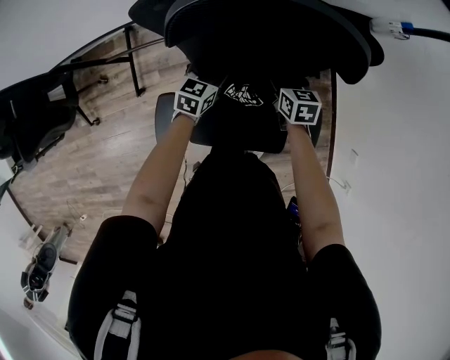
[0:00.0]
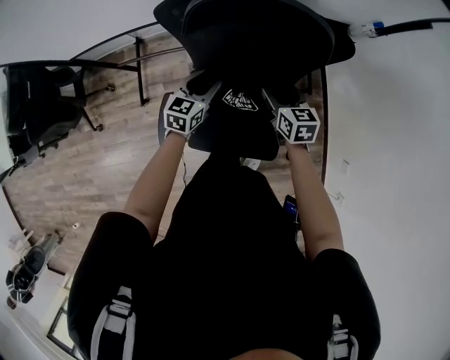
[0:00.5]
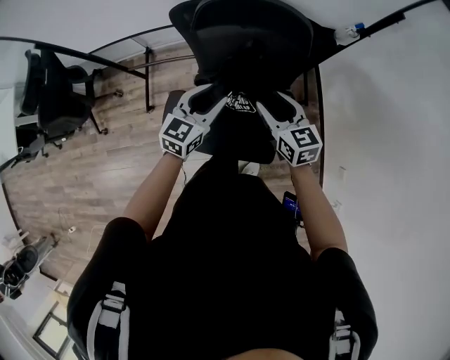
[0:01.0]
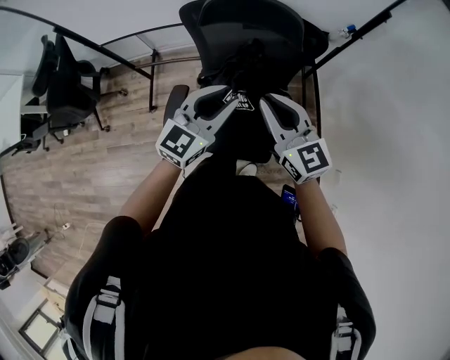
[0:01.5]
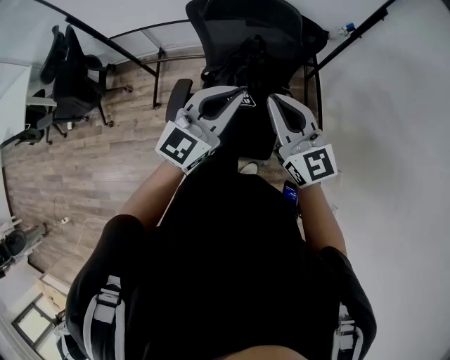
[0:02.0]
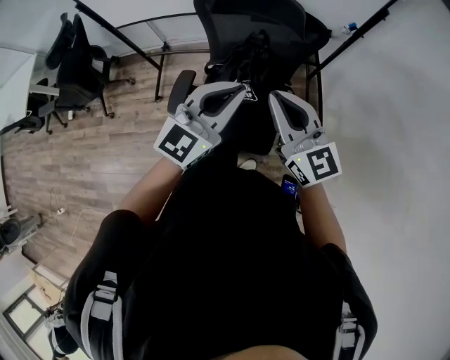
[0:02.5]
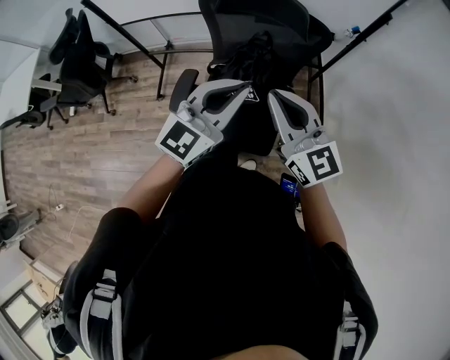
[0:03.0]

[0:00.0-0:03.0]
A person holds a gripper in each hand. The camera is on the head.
0:00.0 to 0:01.5: Both grippers travel together upward and backward, some 50 cm. The left gripper rotates about 30 degrees. Meanwhile the right gripper points its fingers roughly 40 degrees further upward, and closes its fingers.
0:01.5 to 0:03.0: Both grippers travel together backward and upward, about 10 cm. The left gripper closes.

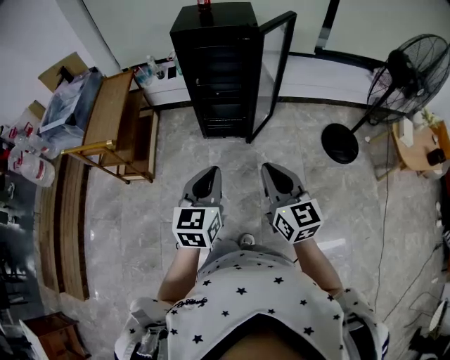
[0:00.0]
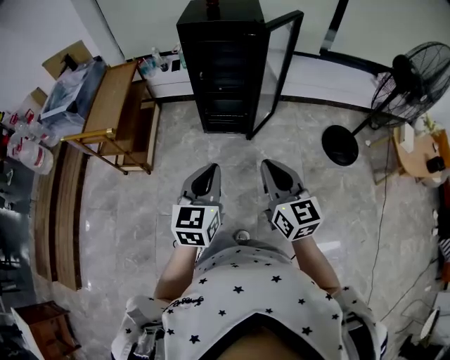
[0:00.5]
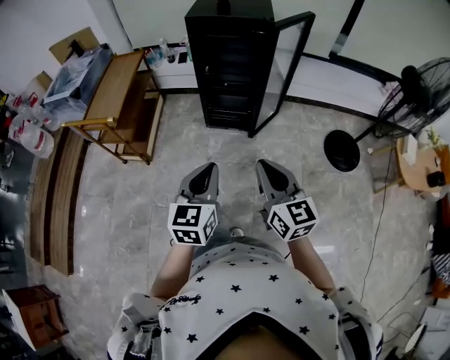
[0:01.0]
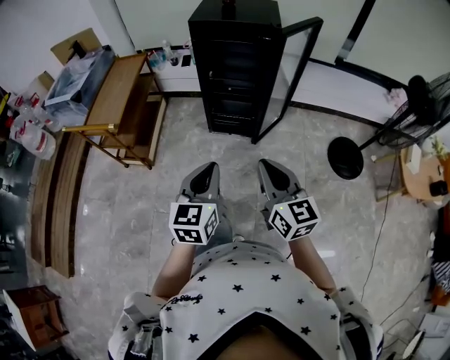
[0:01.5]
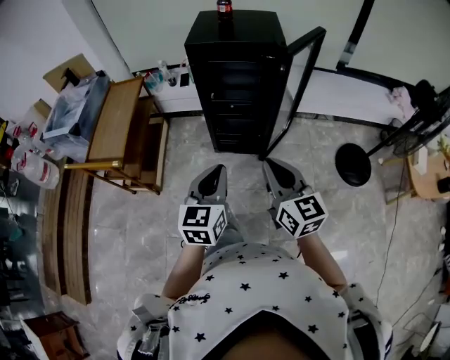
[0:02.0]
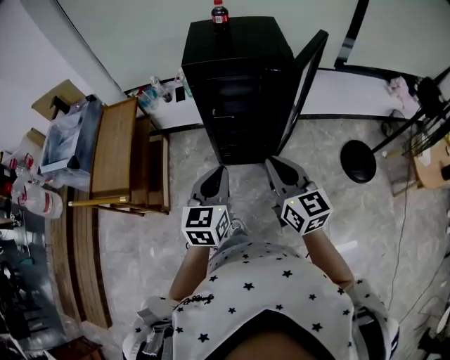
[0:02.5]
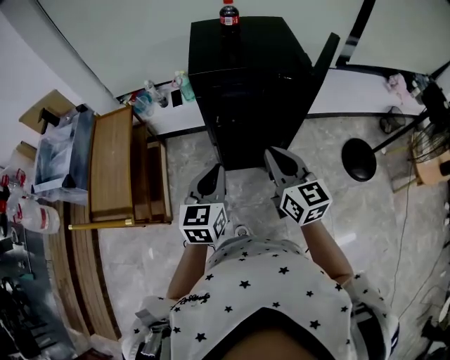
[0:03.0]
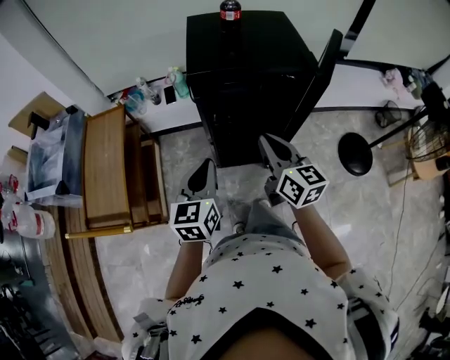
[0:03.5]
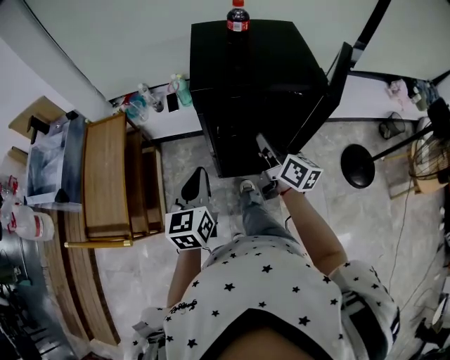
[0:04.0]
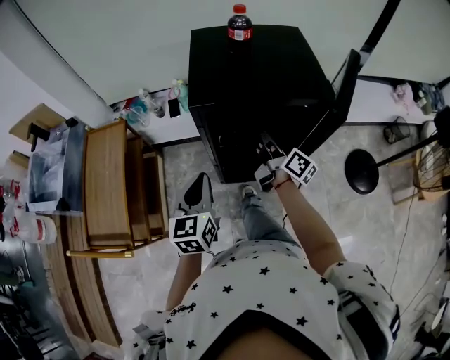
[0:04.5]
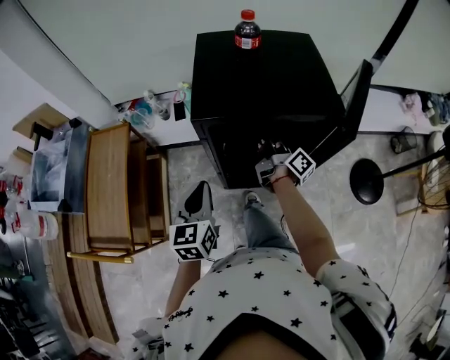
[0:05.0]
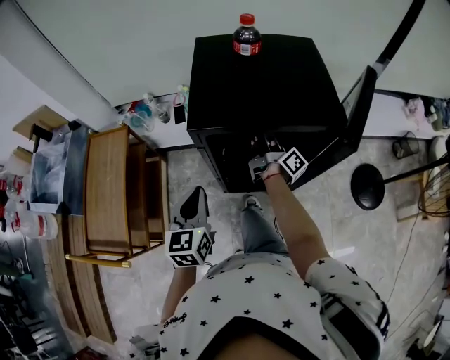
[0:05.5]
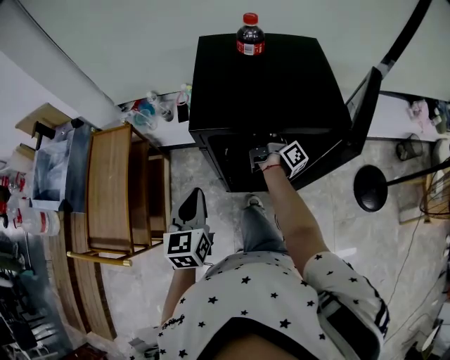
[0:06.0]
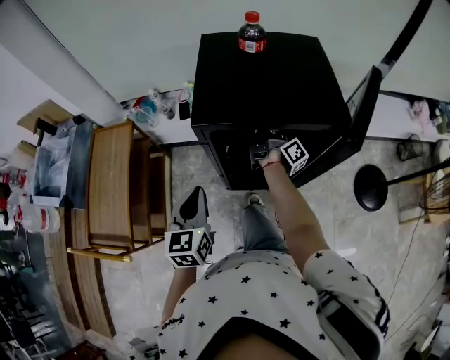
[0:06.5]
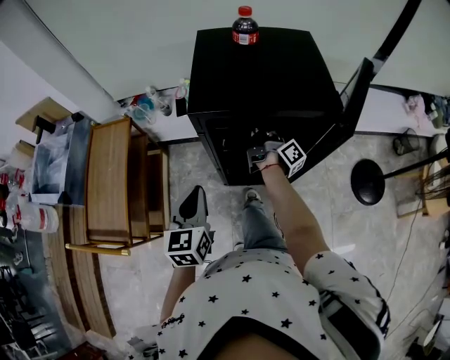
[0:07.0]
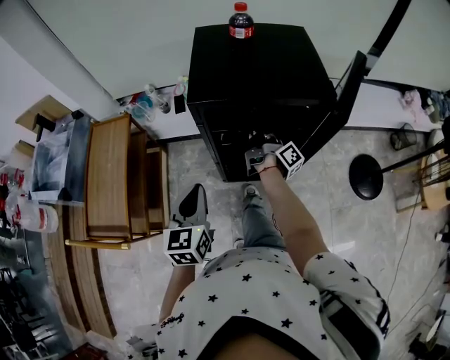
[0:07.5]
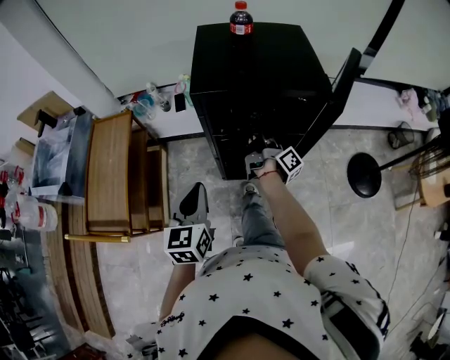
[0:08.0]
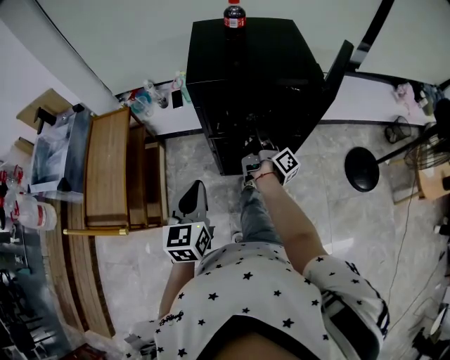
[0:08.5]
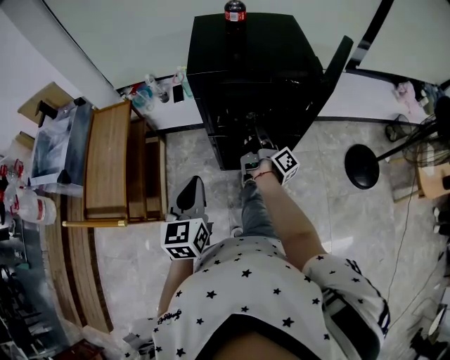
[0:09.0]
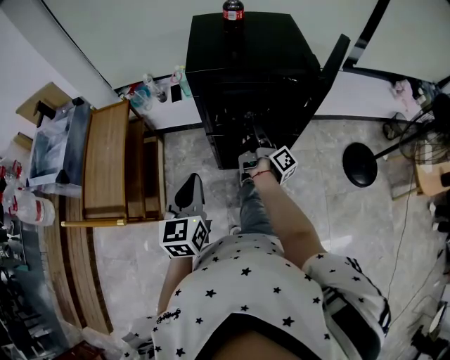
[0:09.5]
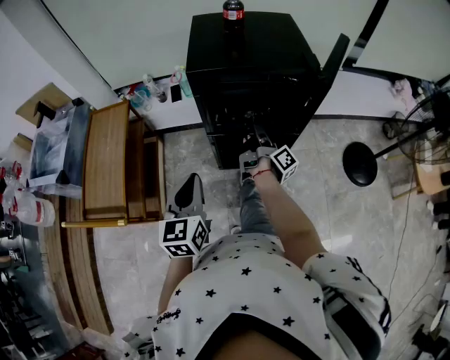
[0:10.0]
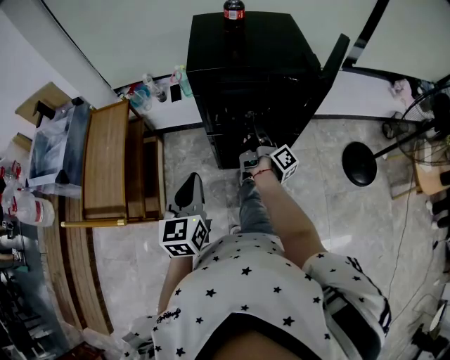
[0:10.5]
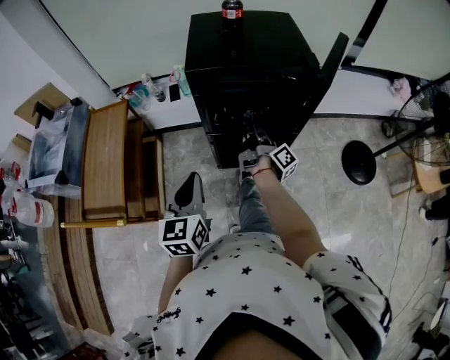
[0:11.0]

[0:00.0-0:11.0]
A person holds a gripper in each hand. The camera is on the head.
0:00.0 to 0:02.0: The two grippers go some 15 cm forward.
0:02.0 to 0:03.5: The right gripper shifts approximately 30 cm forward; the left gripper heads forward and to the left, covering approximately 30 cm.
0:03.5 to 0:05.5: The right gripper shifts approximately 30 cm forward and downward, rotates around the line of its fingers by roughly 60 degrees, clockwise from behind, and opens up, while the left gripper heads forward, covering approximately 10 cm.
0:05.5 to 0:07.5: The two grippers go roughly 5 cm backward. The right gripper closes its fingers.
0:07.5 to 0:09.0: The grippers both shift backward by about 10 cm.
0:09.0 to 0:11.0: Neither gripper changes place.

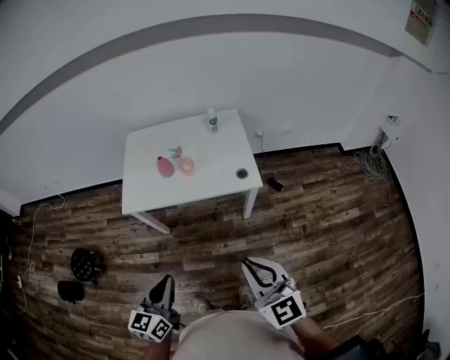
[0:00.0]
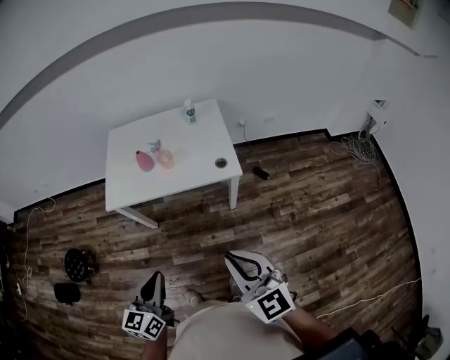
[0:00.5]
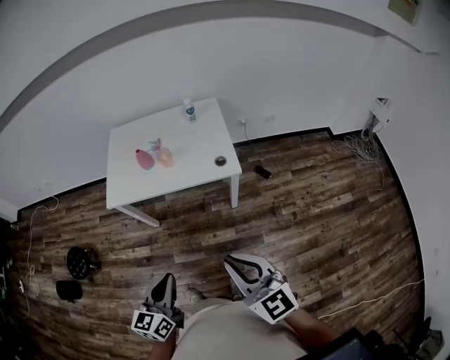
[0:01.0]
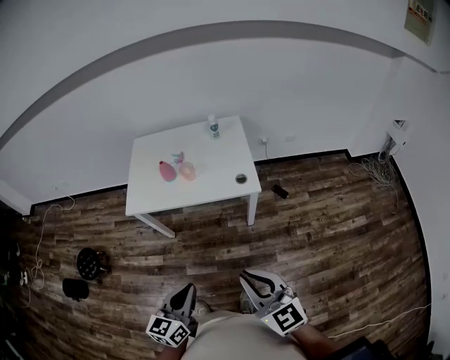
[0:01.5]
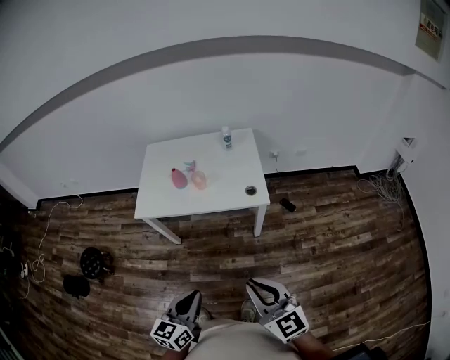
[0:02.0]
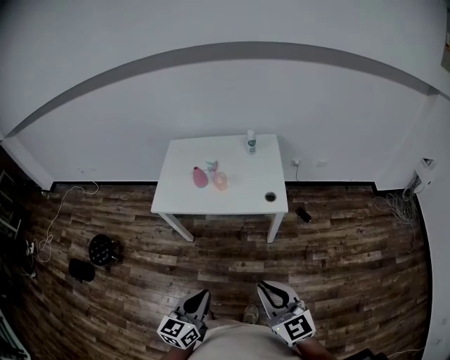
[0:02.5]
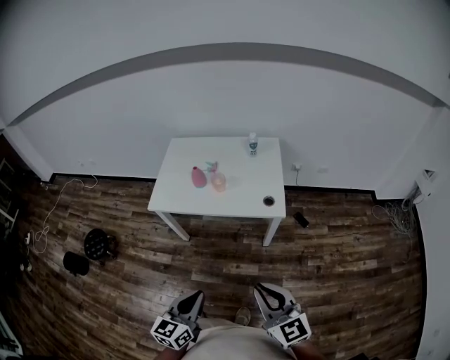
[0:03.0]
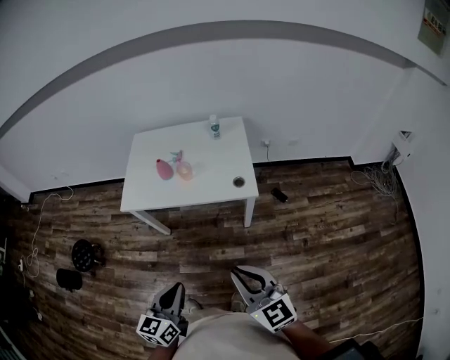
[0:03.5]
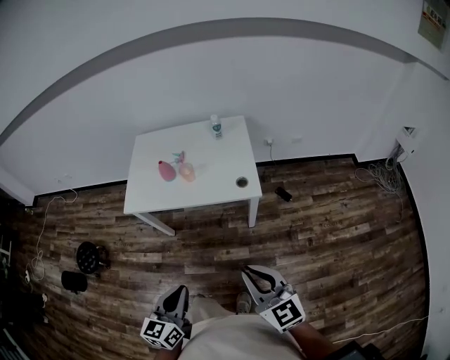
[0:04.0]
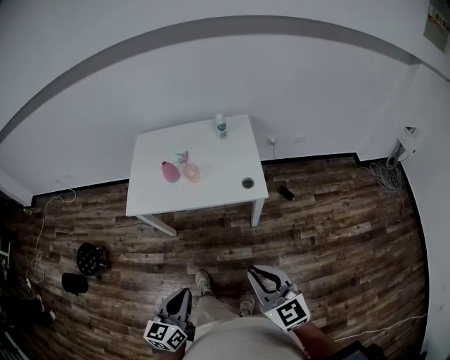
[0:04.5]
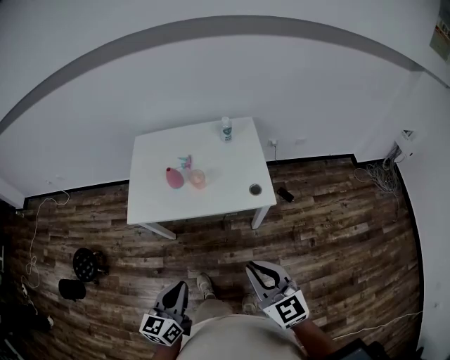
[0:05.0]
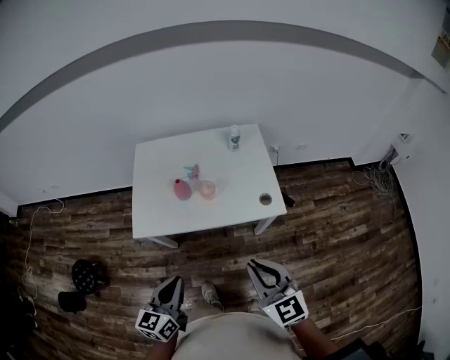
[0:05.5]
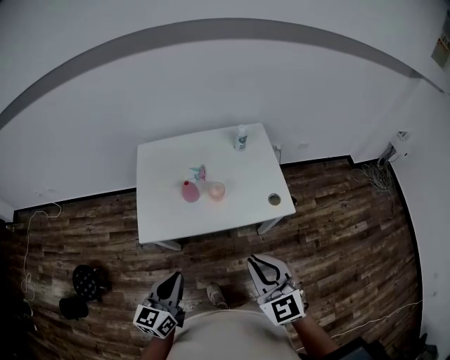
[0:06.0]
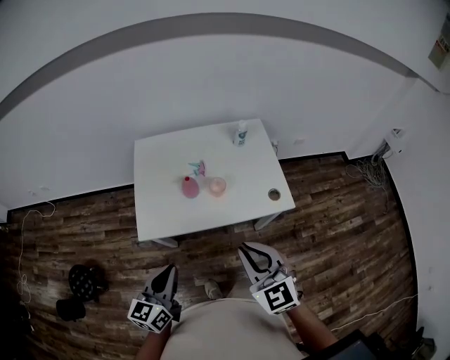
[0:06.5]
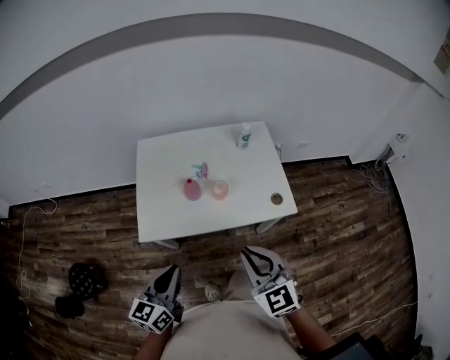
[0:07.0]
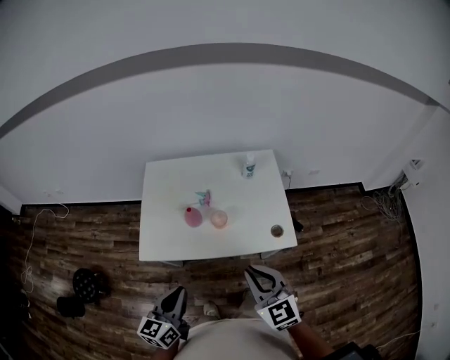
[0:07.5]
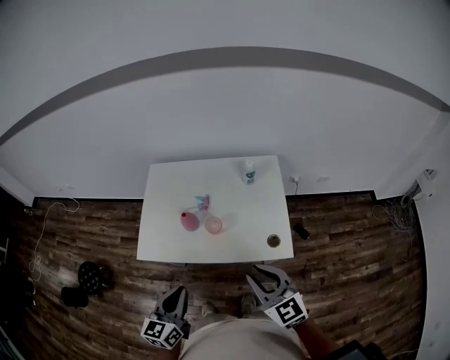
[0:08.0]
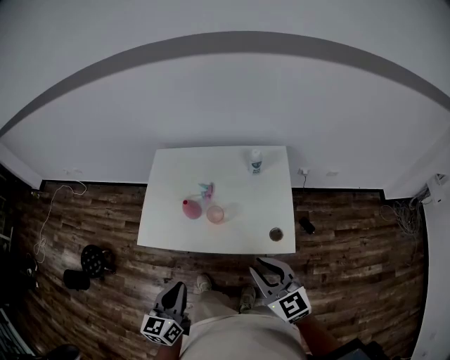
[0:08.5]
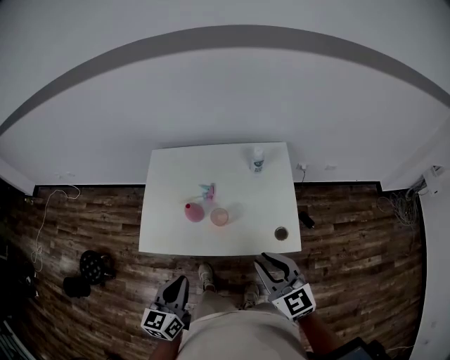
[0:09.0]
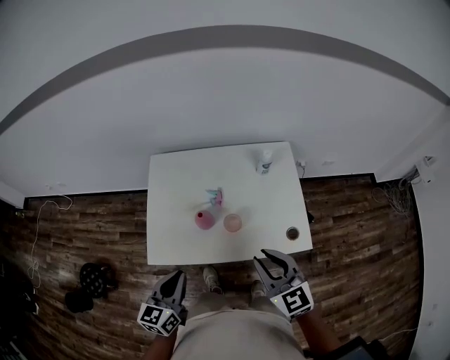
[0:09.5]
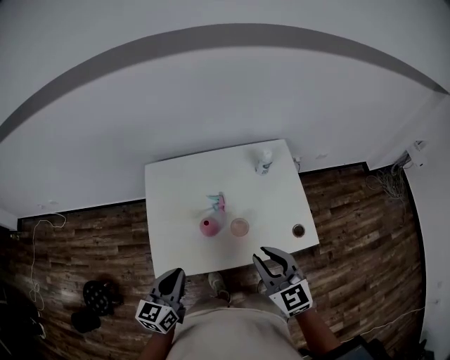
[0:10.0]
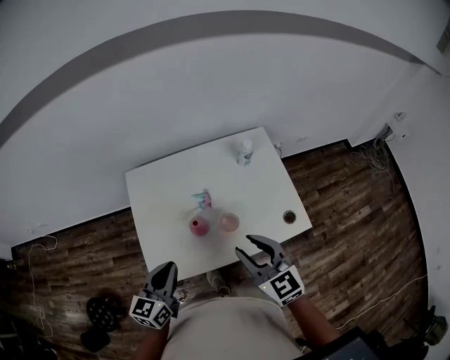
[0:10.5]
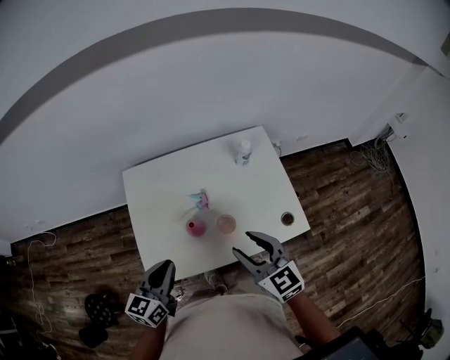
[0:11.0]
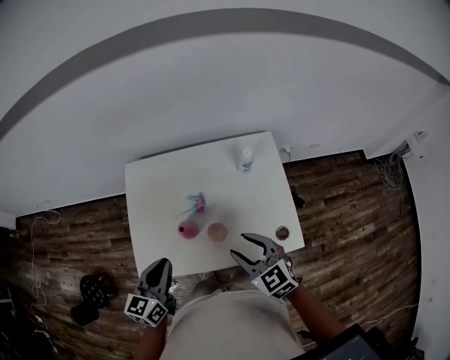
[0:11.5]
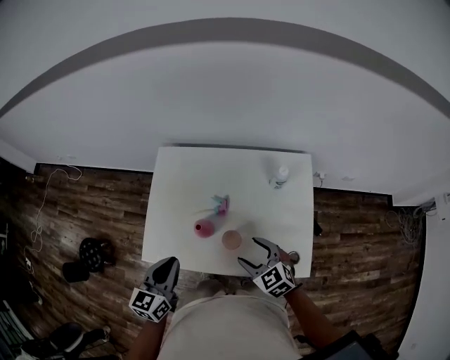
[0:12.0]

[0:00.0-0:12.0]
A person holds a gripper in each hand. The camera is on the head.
0:00.0 to 0:02.0: The left gripper travels to the right and backward by approximately 10 cm. The right gripper shifts roughly 5 cm backward.
0:02.0 to 0:04.0: The right gripper changes place by roughly 5 cm.
0:04.0 to 0:06.0: The right gripper goes approximately 30 cm to the left and forward, and rotates approximately 20 degrees. Meanwhile the left gripper goes roughly 35 cm forward and to the left.
0:06.0 to 0:08.0: The left gripper travels to the right and forward by approximately 15 cm, while the right gripper travels forward and to the right by roughly 15 cm.
0:08.0 to 0:10.0: Both grippers move forward and to the left, roughly 20 cm.
0:10.0 to 0:12.0: The right gripper travels downward by about 15 cm, turns by some 30 degrees, and opens up. The left gripper changes place by some 10 cm.

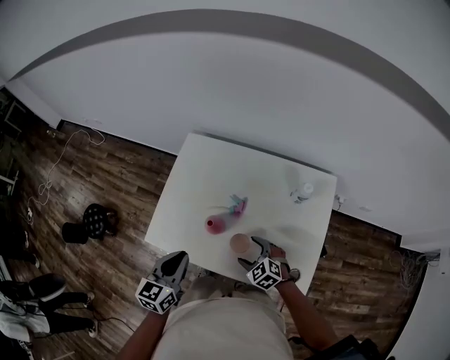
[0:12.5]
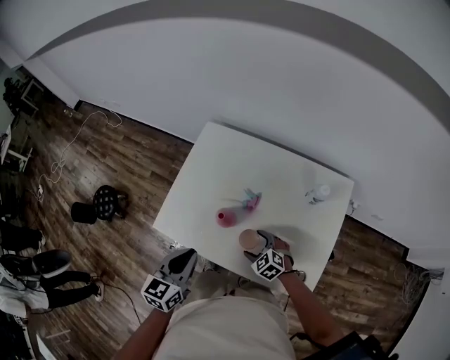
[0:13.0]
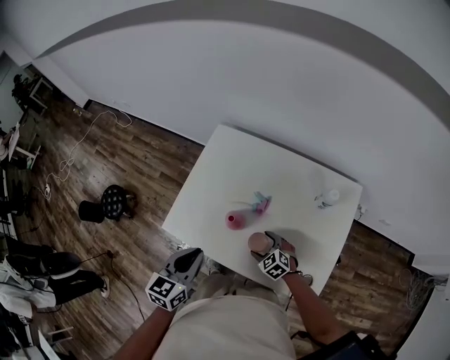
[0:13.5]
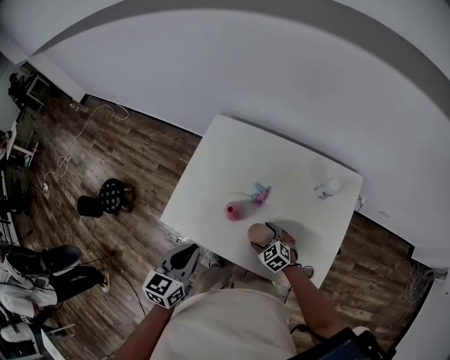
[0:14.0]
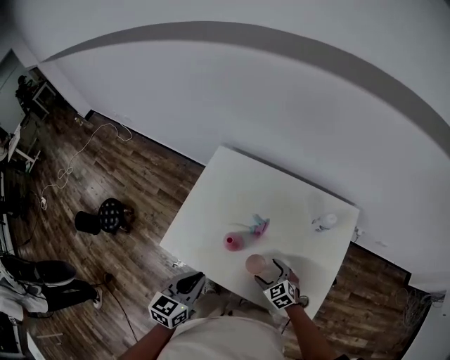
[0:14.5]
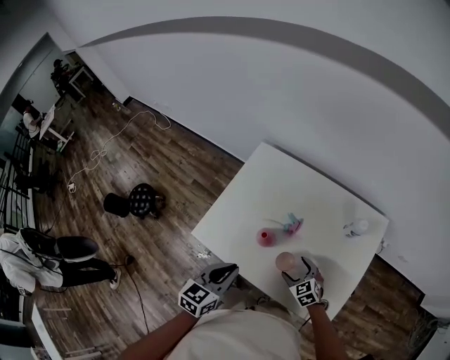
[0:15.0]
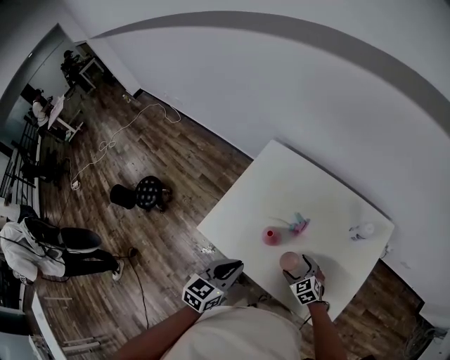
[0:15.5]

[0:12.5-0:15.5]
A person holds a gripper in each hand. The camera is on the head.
0:12.5 to 0:14.0: The right gripper heads downward, covering approximately 10 cm.
0:14.0 to 0:15.5: The grippers make only small movements.
